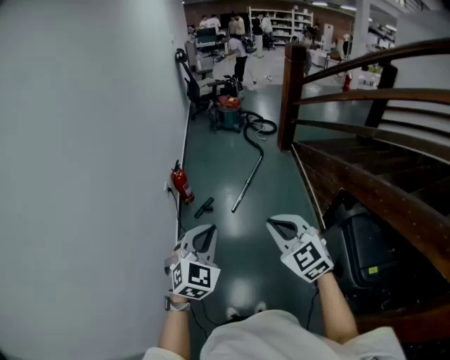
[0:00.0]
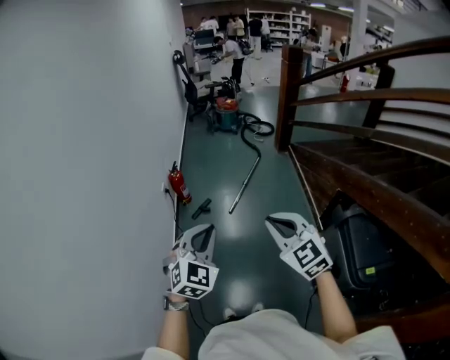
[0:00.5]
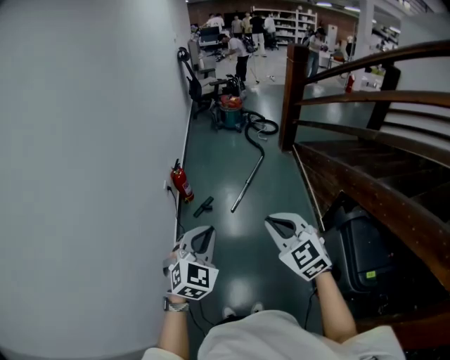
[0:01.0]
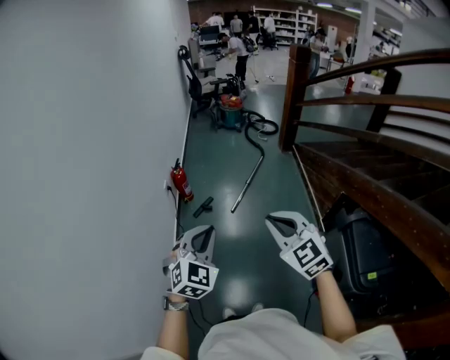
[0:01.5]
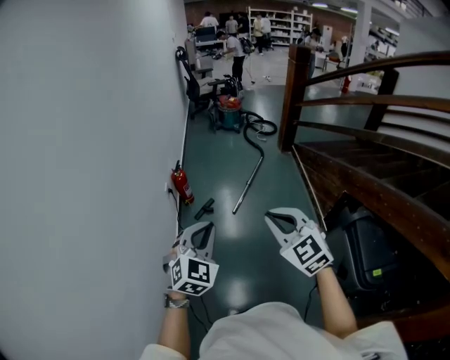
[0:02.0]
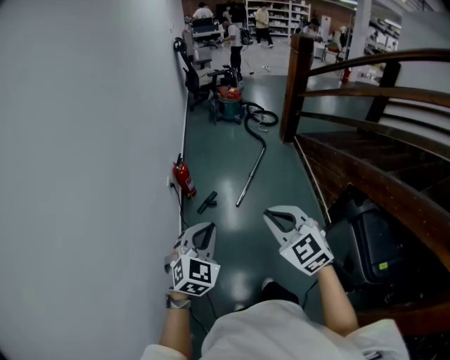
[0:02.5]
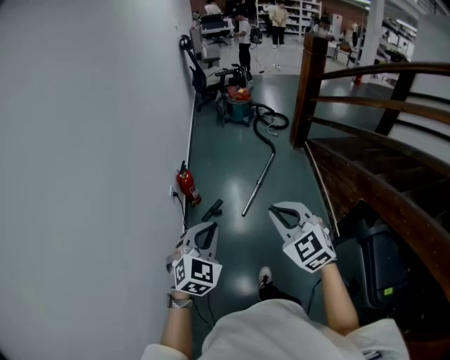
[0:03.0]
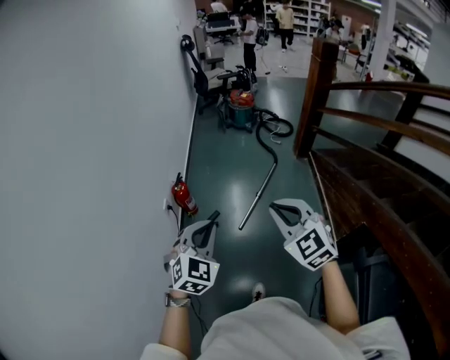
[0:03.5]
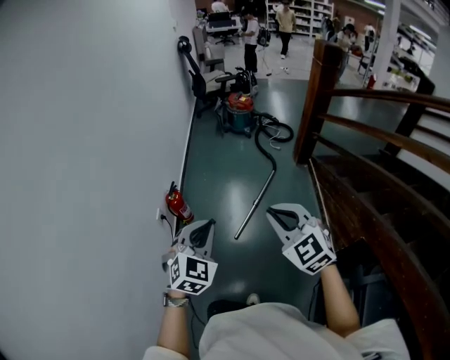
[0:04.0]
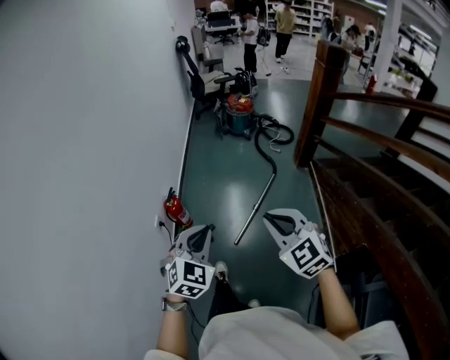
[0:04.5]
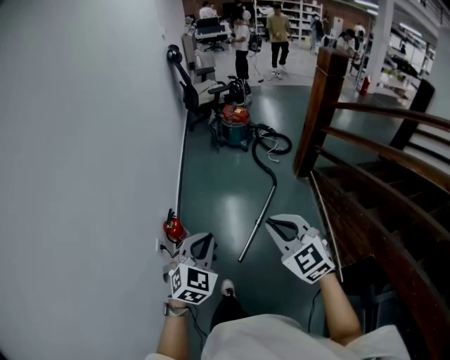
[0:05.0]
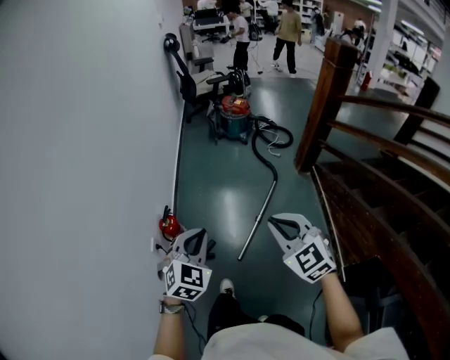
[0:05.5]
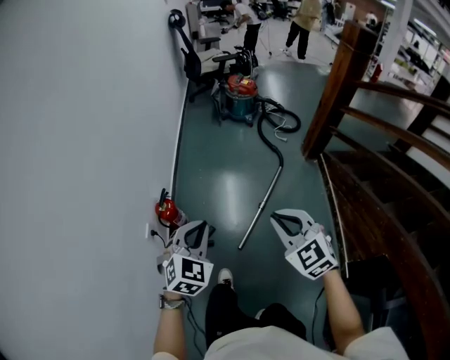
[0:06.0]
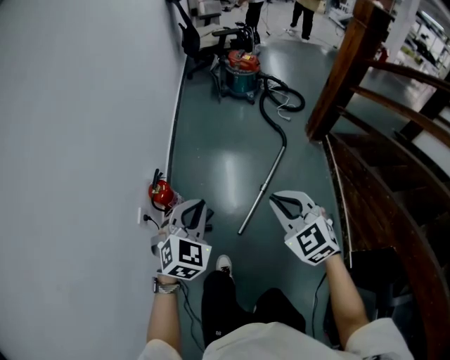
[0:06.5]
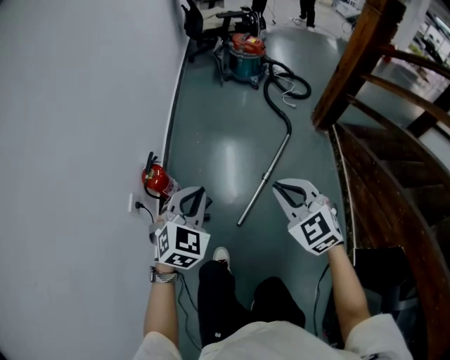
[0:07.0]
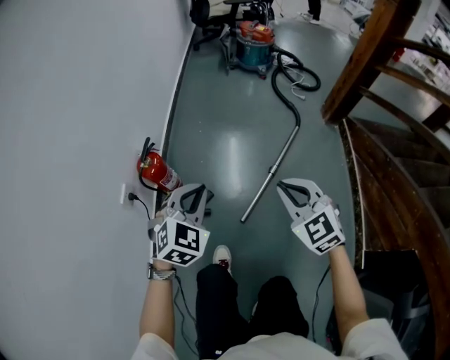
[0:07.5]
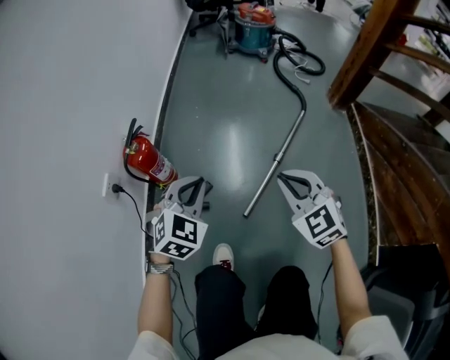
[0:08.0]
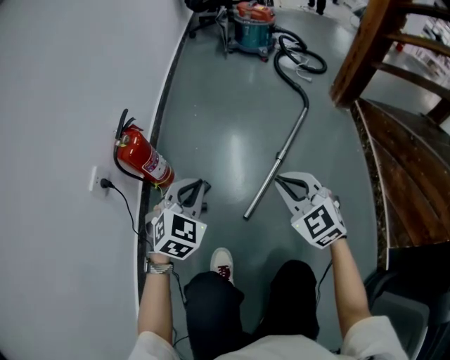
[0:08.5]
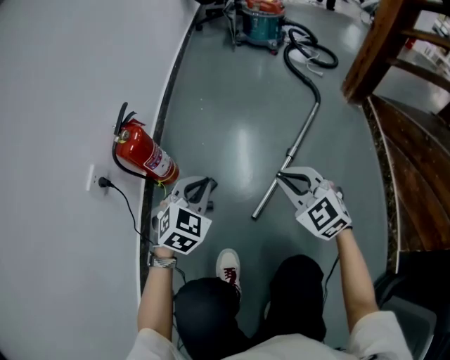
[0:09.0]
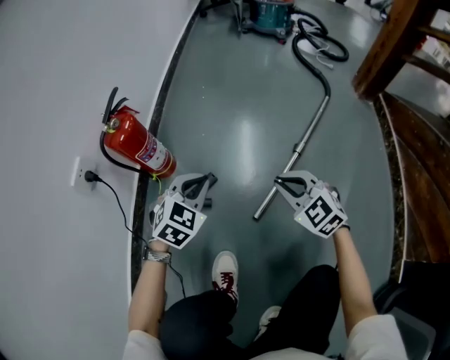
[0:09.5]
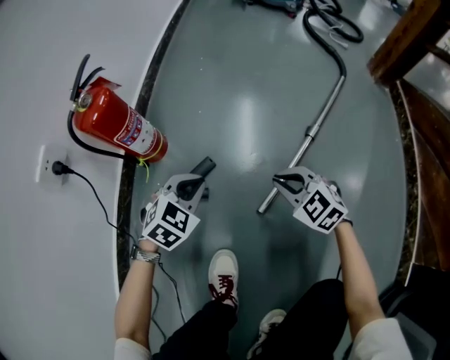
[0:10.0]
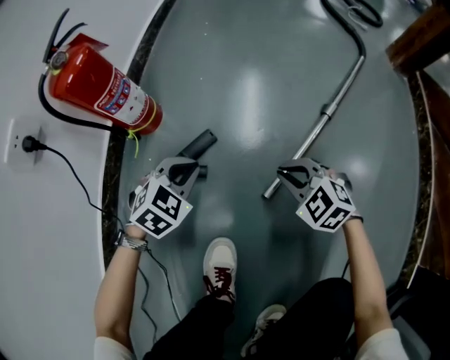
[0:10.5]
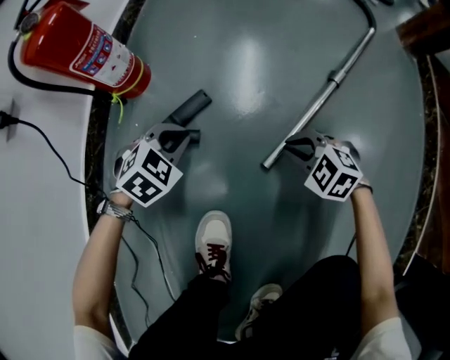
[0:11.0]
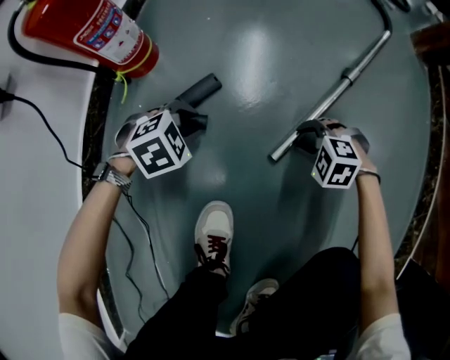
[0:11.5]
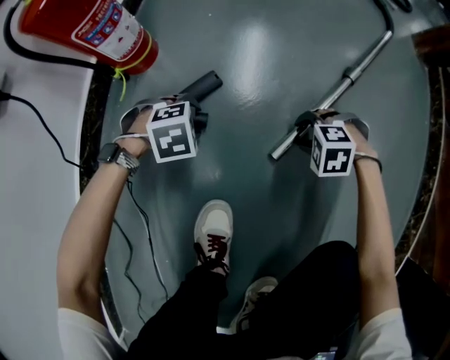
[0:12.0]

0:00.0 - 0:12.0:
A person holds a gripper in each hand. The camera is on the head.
0:00.0 - 0:02.0: The left gripper ends up approximately 5 cm from where it was; the right gripper ends up some 5 cm from where it was.
0:02.0 - 0:04.0: Both grippers move forward, roughly 35 cm.
0:04.0 - 0:06.0: The grippers both shift forward and downward by about 30 cm.
0:06.0 - 0:08.0: The two grippers go approximately 35 cm downward.
0:08.0 - 0:10.0: The grippers both shift downward by roughly 35 cm. The right gripper rotates approximately 20 degrees.
0:10.0 - 0:12.0: Both grippers travel together downward, about 20 cm. The left gripper angles its fingers downward, by approximately 30 degrees, and opens up. Meanwhile the right gripper points its fingers some 40 degrees further downward, and opens its fingers.

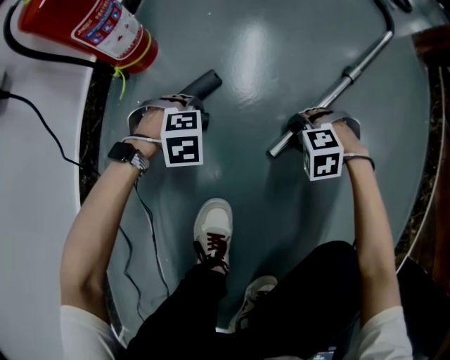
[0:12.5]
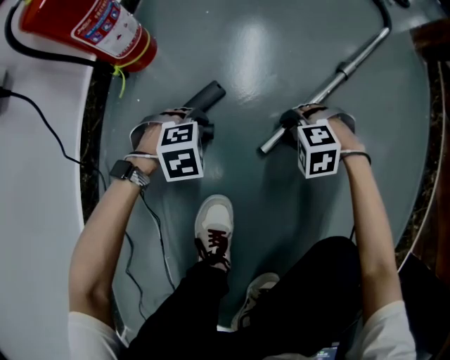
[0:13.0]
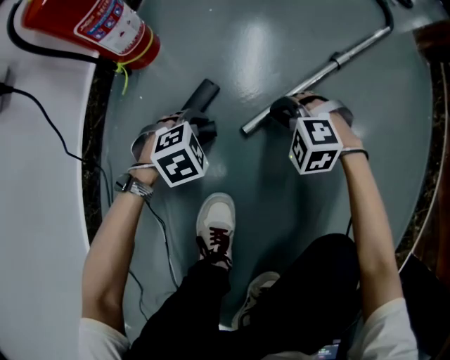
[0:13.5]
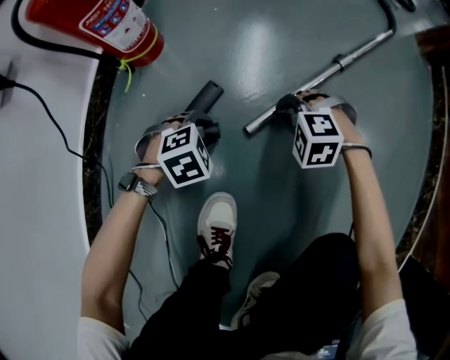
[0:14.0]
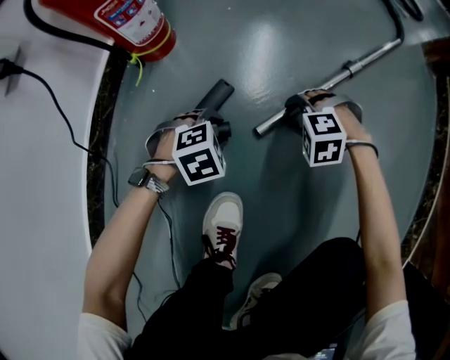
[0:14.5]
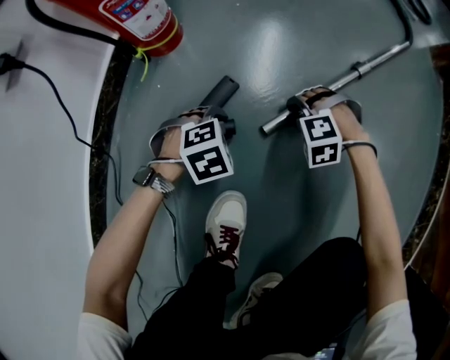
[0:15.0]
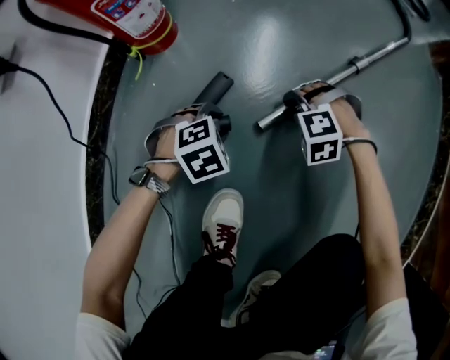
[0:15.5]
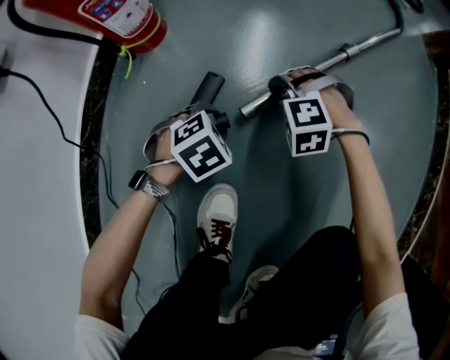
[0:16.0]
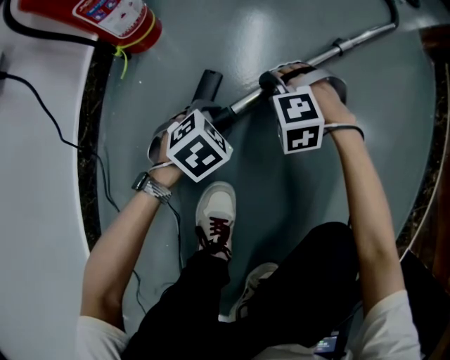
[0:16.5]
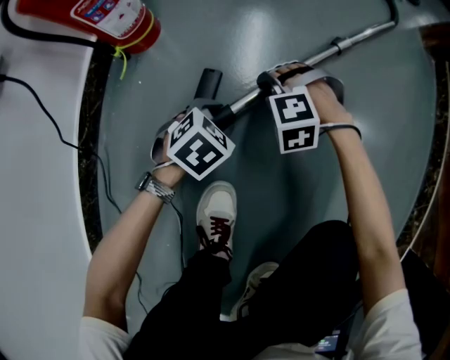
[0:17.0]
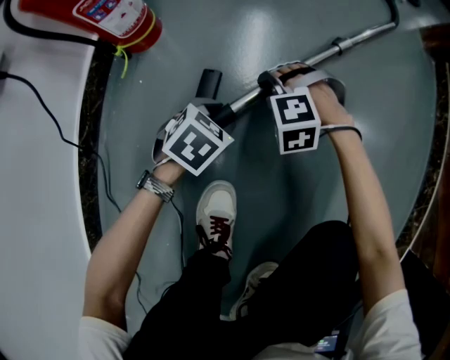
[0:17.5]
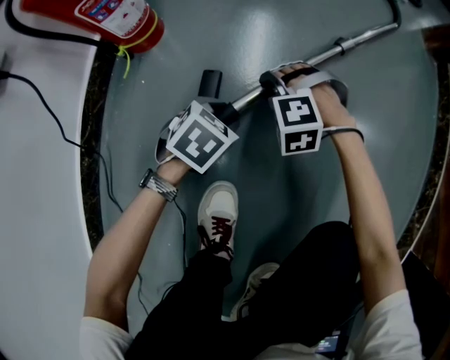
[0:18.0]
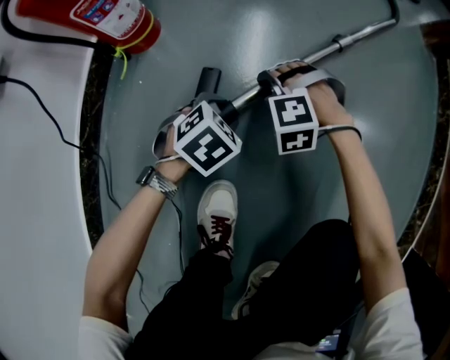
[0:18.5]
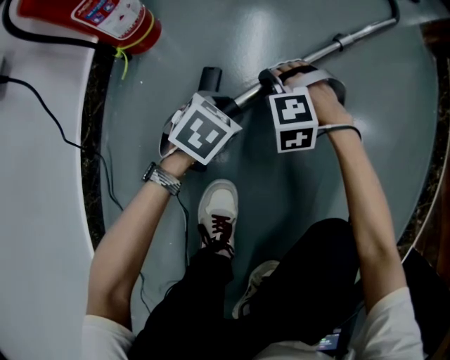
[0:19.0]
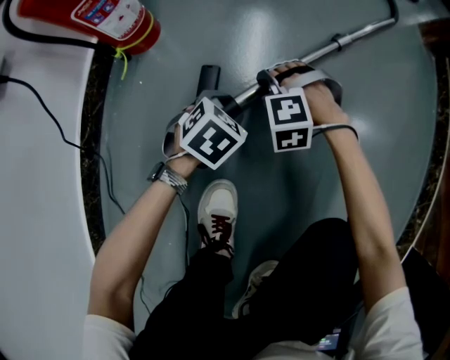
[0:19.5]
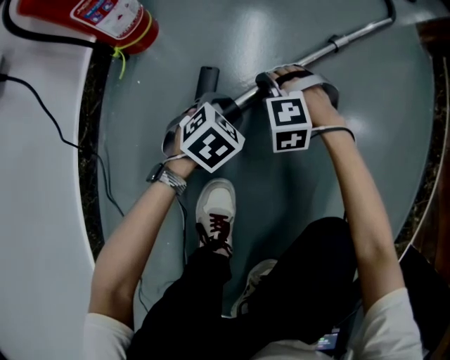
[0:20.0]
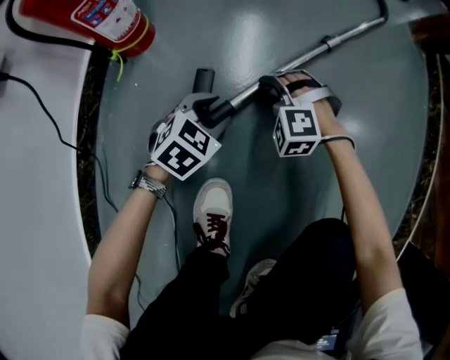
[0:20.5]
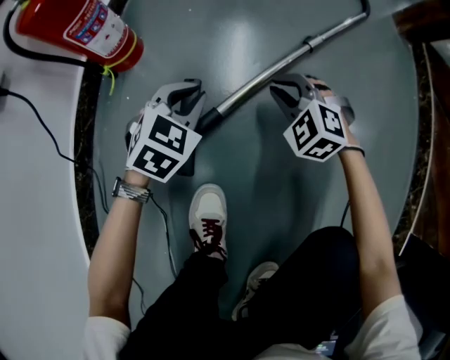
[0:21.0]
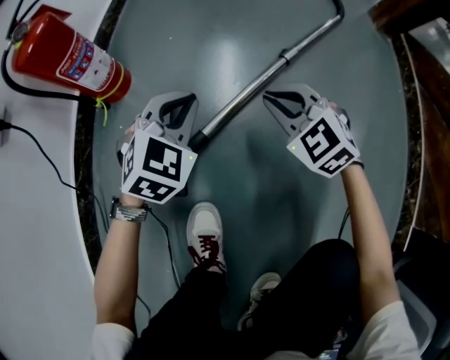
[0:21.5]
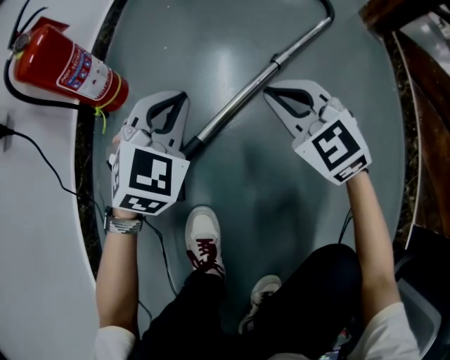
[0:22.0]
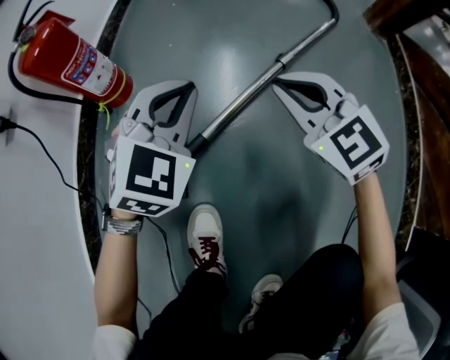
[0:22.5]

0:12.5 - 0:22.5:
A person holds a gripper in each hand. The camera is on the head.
0:12.5 - 0:14.5: The left gripper changes place by about 5 cm, and swivels approximately 20 degrees, while the right gripper moves approximately 5 cm, and closes and opens again.
0:14.5 - 0:16.5: The right gripper ends up approximately 5 cm from where it was, while the left gripper rotates about 20 degrees.
0:16.5 - 0:20.5: The grippers stay close to where they were, moving slightly.
0:20.5 - 0:22.5: The grippers both shift upward by approximately 25 cm. The left gripper rotates some 30 degrees, and closes its fingers, while the right gripper rolls clockwise, seen from behind, by approximately 50 degrees, and closes.

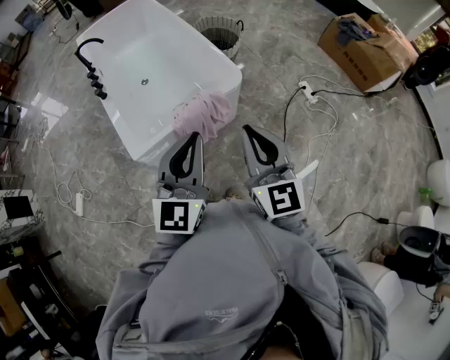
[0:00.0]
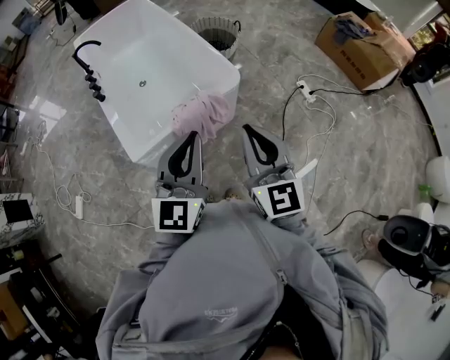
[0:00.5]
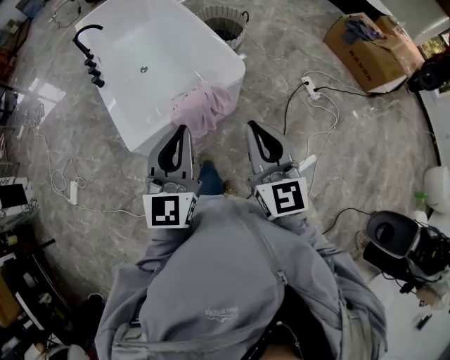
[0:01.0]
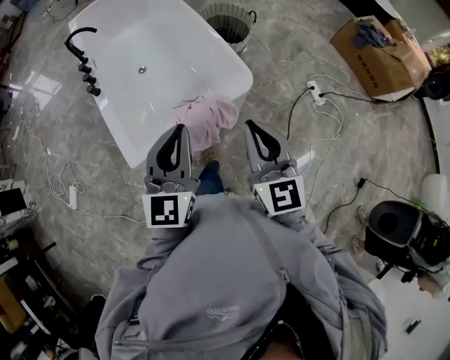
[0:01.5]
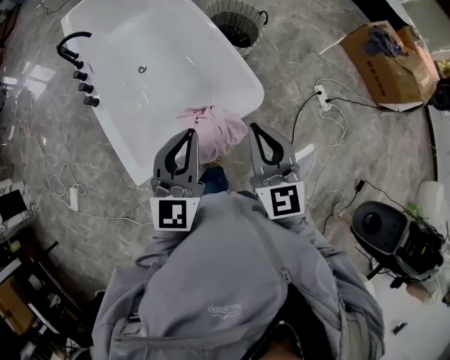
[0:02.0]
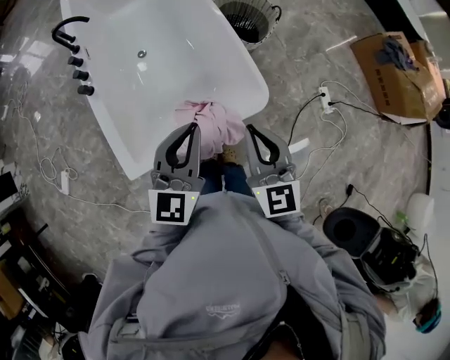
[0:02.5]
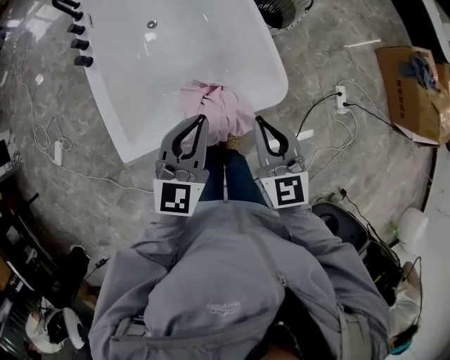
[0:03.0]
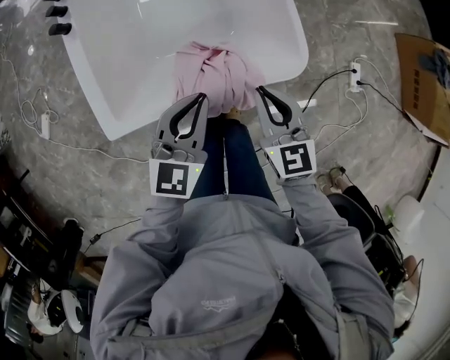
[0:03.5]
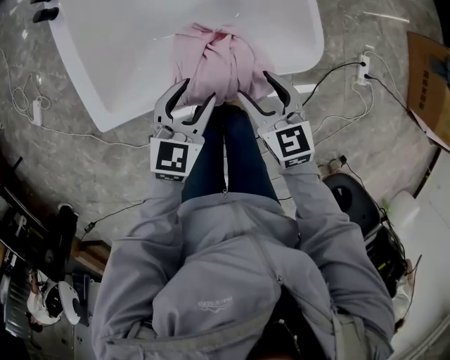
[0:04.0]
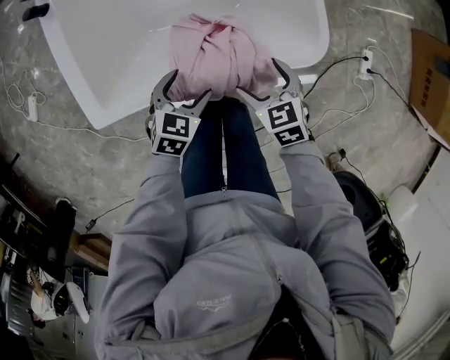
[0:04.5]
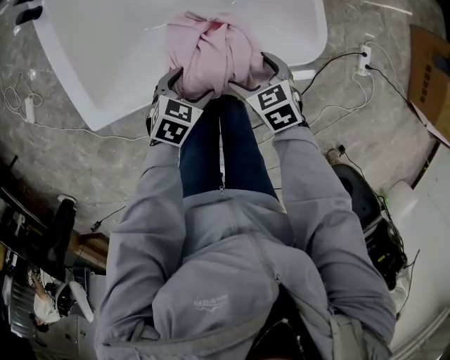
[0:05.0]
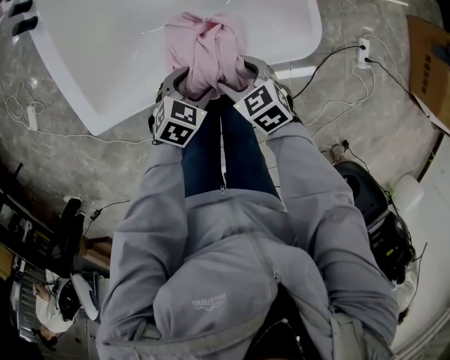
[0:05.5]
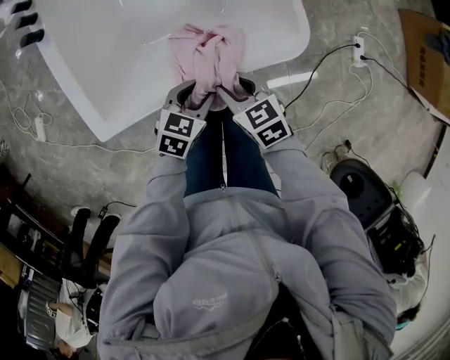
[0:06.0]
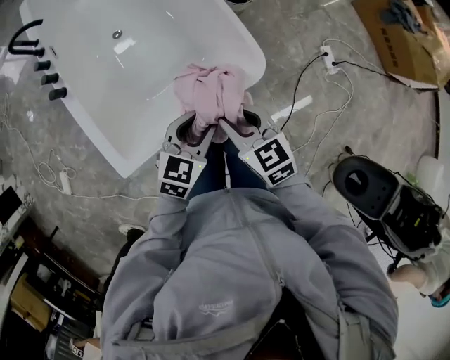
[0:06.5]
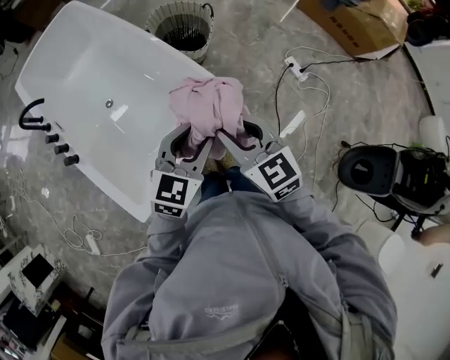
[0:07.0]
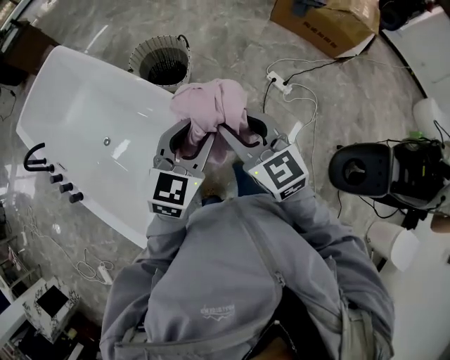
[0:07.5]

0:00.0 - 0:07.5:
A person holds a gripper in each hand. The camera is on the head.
0:00.0 - 0:02.0: The grippers both shift forward by some 30 cm.
0:02.0 - 0:04.0: The two grippers go roughly 35 cm downward. The right gripper tips its fingers downward by about 30 degrees, and opens up. Meanwhile the left gripper swivels roughly 30 degrees, and opens its fingers.
0:04.0 - 0:05.5: Both grippers move downward, roughly 10 cm. The right gripper changes its angle by roughly 20 degrees, while the left gripper swivels some 30 degrees.
0:05.5 - 0:07.5: The two grippers go approximately 50 cm upward. The left gripper tips its fingers upward by some 40 degrees, and closes its fingers. The right gripper points its fingers some 40 degrees further upward, and closes.
